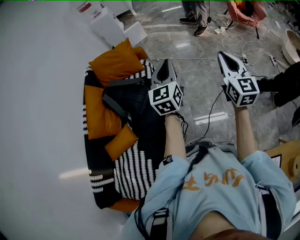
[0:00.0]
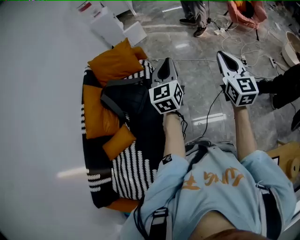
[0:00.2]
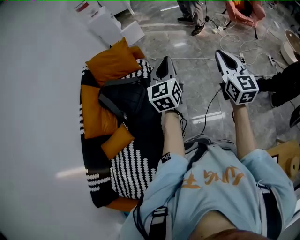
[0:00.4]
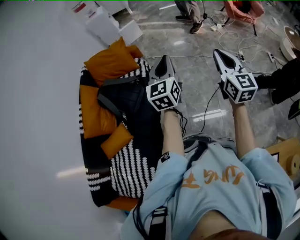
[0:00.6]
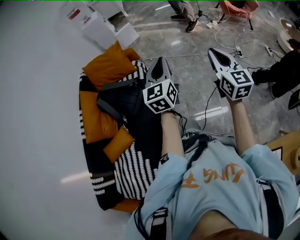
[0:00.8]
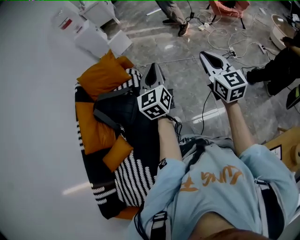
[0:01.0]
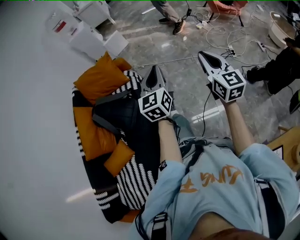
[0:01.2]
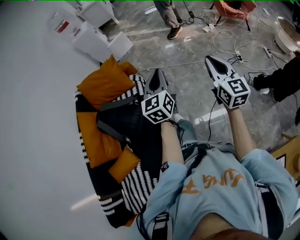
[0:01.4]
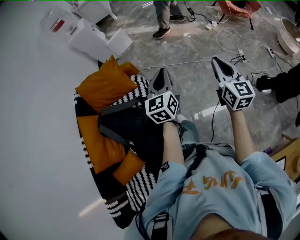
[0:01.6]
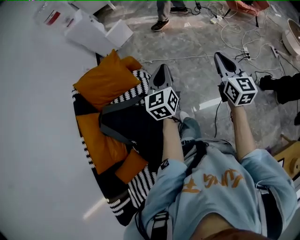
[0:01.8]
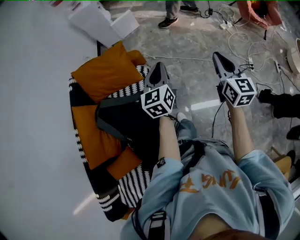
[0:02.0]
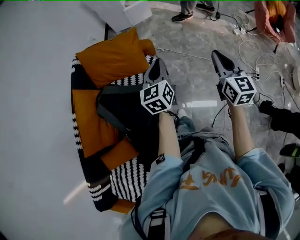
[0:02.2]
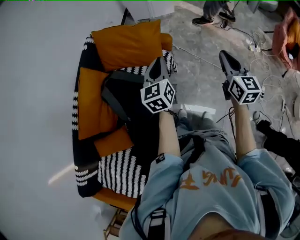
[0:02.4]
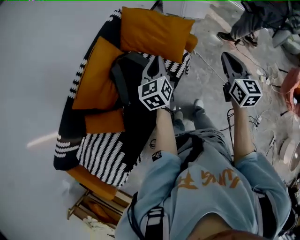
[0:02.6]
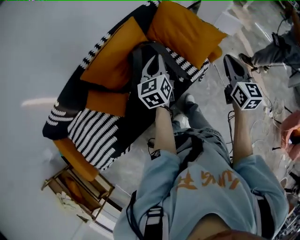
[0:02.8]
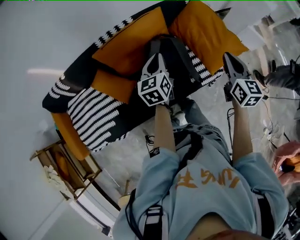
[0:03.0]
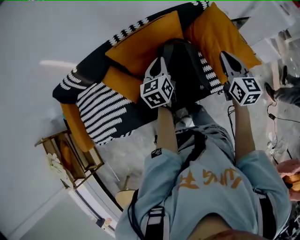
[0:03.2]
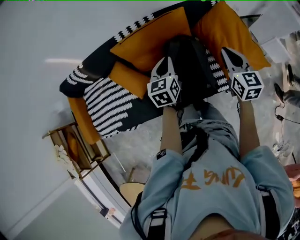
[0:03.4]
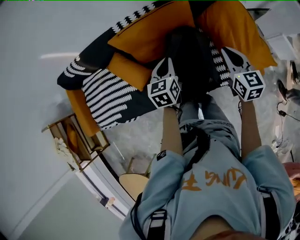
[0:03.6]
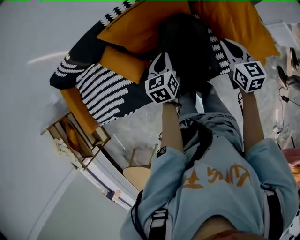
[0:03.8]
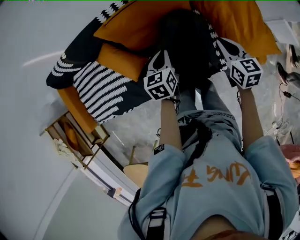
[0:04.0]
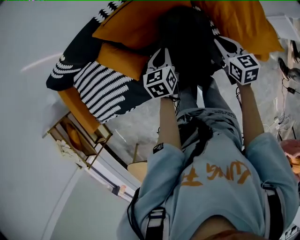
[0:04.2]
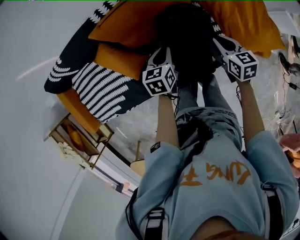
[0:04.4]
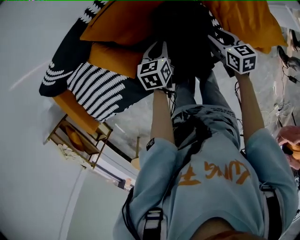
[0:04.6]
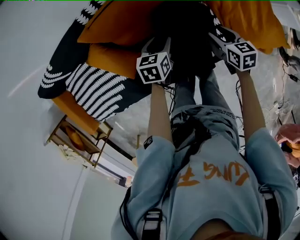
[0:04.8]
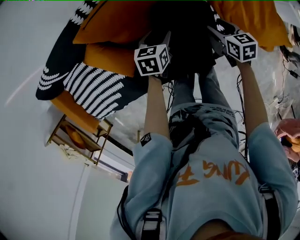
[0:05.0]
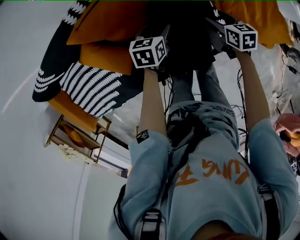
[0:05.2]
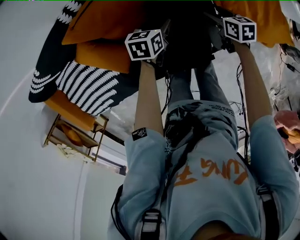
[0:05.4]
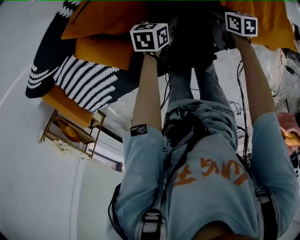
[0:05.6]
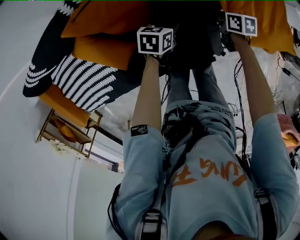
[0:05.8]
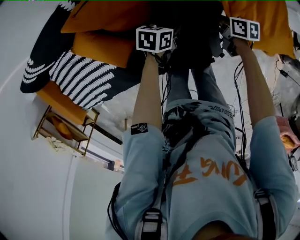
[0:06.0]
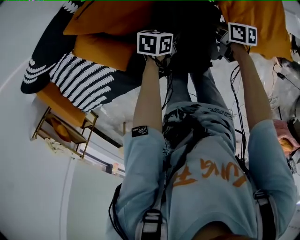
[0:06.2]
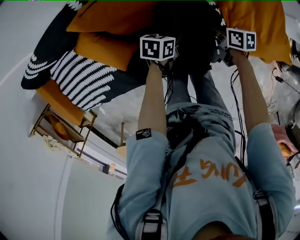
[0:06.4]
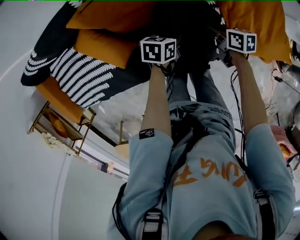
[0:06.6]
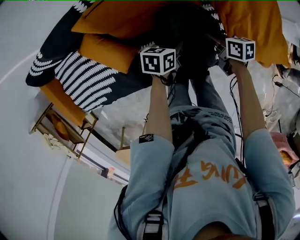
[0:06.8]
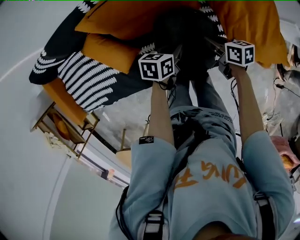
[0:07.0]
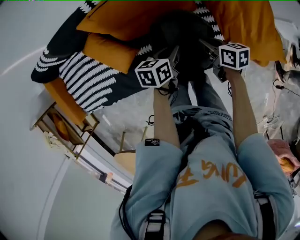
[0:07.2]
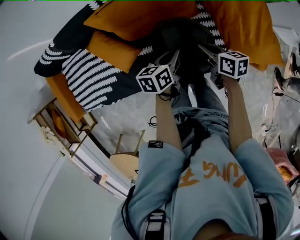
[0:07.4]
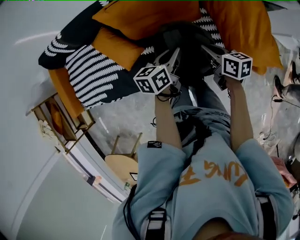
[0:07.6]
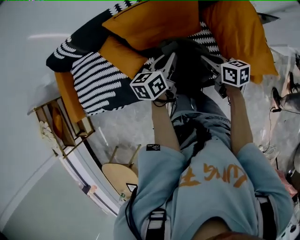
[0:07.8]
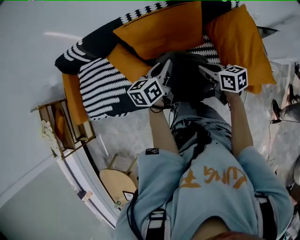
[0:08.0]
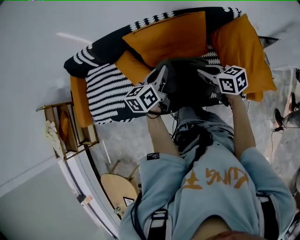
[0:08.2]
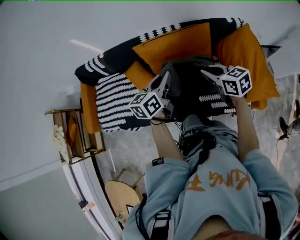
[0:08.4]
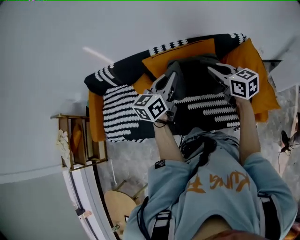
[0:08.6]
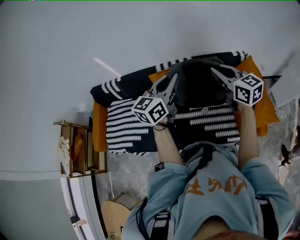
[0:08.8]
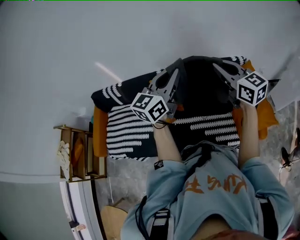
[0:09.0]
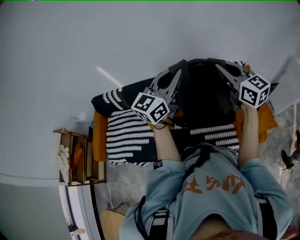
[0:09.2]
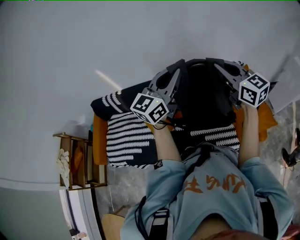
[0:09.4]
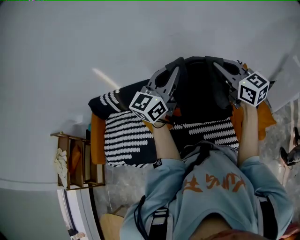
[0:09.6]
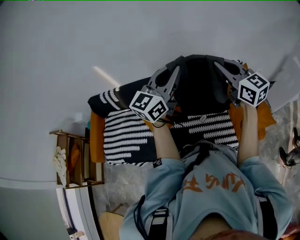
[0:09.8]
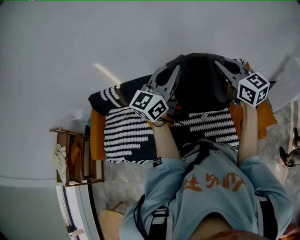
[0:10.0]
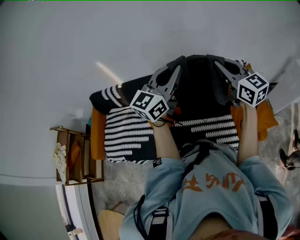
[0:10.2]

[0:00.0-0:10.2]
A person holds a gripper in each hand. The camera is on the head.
0:00.0 to 0:01.4: The two grippers go about 15 cm forward and downward.
0:01.4 to 0:03.0: The pair of grippers is taken approximately 60 cm. The right gripper rotates some 70 degrees. The left gripper rotates approximately 70 degrees.
0:03.0 to 0:04.4: The left gripper moves downward, roughly 20 cm, and swivels roughly 30 degrees. The right gripper heads downward and forward, covering approximately 30 cm, and changes its angle by approximately 30 degrees.
0:04.4 to 0:05.8: The grippers both shift downward and forward by roughly 20 cm. The left gripper rotates approximately 30 degrees, and opens its fingers; the right gripper turns by some 30 degrees, and opens.
0:05.8 to 0:07.2: Both grippers move upward, about 10 cm. The right gripper closes up; the left gripper rotates roughly 20 degrees, and closes up.
0:07.2 to 0:08.8: Both grippers travel together upward, roughly 40 cm. The right gripper angles its fingers upward, by roughly 30 degrees; the left gripper tilts its fingers some 40 degrees upward.
0:08.8 to 0:10.2: The two grippers go approximately 5 cm upward.

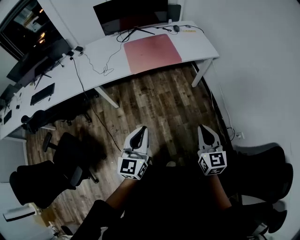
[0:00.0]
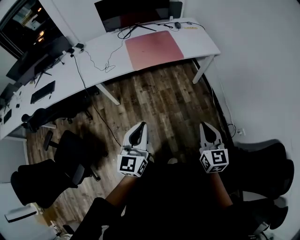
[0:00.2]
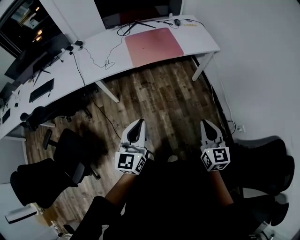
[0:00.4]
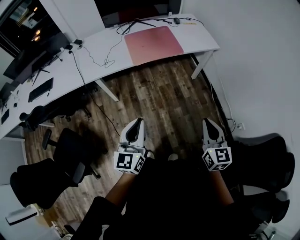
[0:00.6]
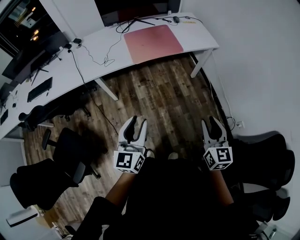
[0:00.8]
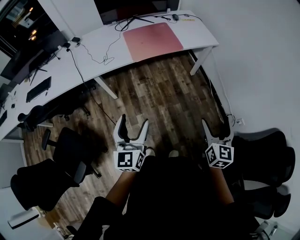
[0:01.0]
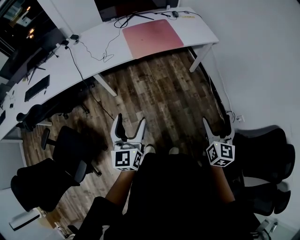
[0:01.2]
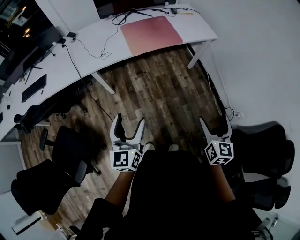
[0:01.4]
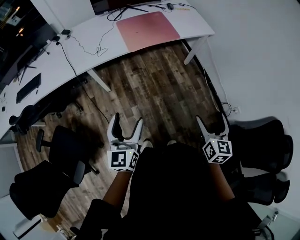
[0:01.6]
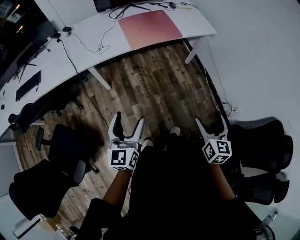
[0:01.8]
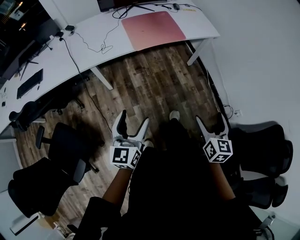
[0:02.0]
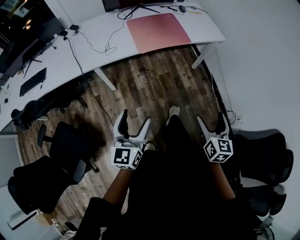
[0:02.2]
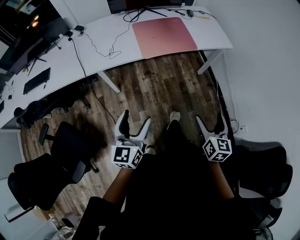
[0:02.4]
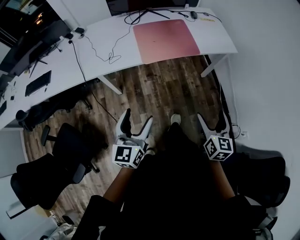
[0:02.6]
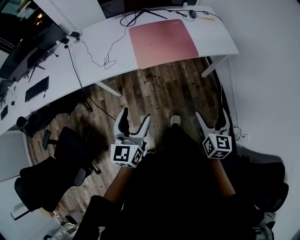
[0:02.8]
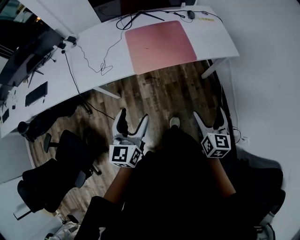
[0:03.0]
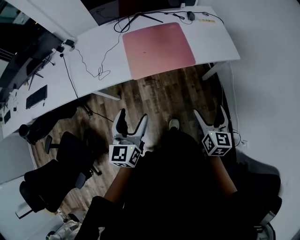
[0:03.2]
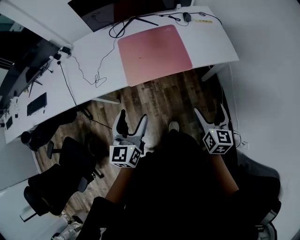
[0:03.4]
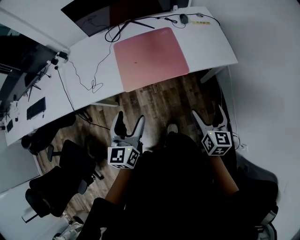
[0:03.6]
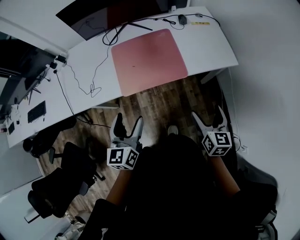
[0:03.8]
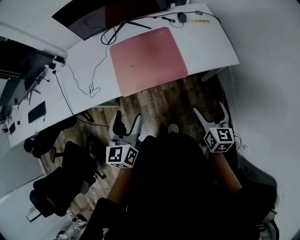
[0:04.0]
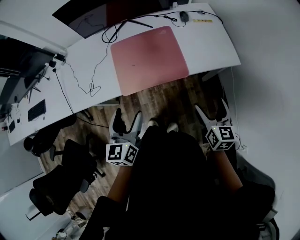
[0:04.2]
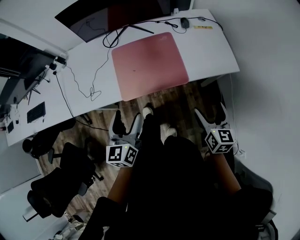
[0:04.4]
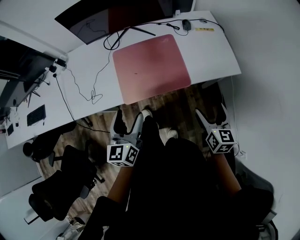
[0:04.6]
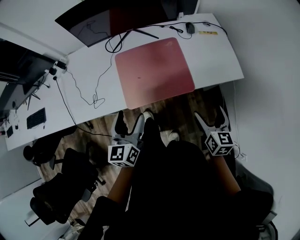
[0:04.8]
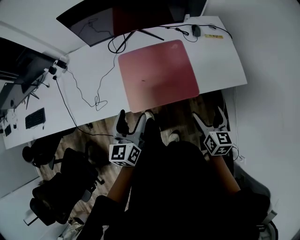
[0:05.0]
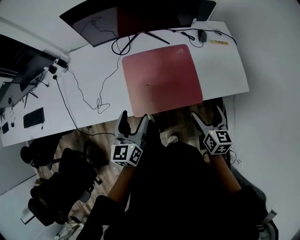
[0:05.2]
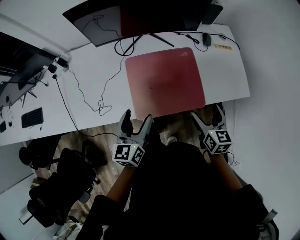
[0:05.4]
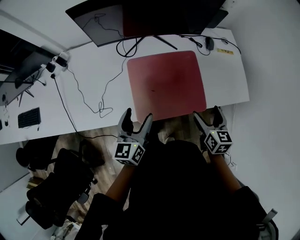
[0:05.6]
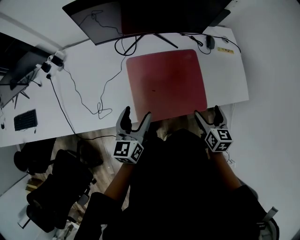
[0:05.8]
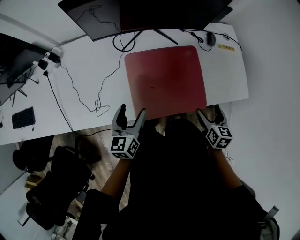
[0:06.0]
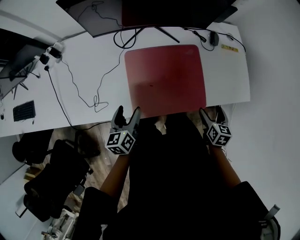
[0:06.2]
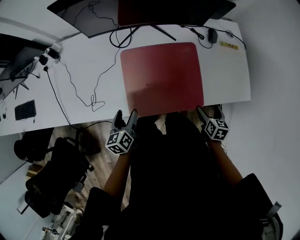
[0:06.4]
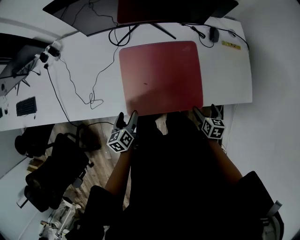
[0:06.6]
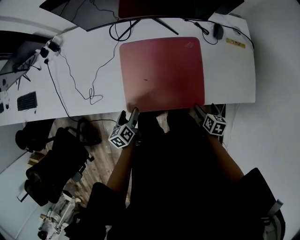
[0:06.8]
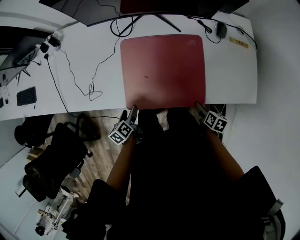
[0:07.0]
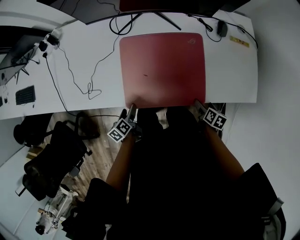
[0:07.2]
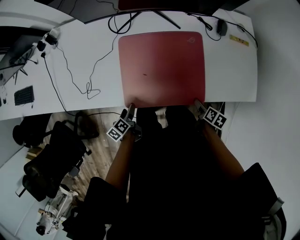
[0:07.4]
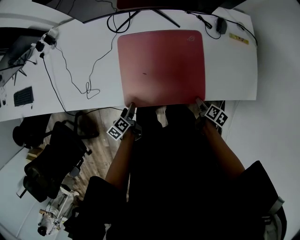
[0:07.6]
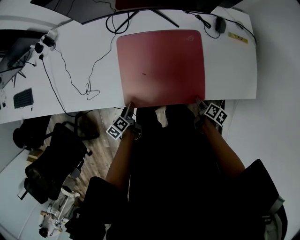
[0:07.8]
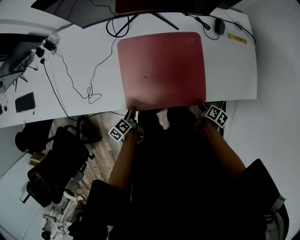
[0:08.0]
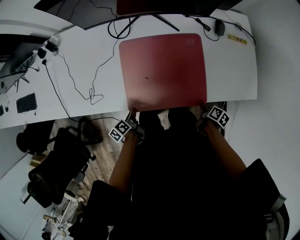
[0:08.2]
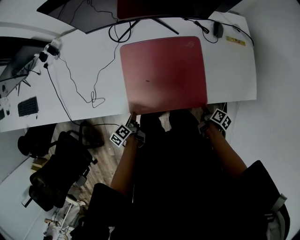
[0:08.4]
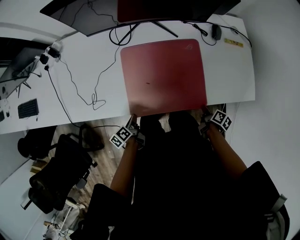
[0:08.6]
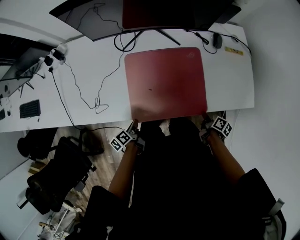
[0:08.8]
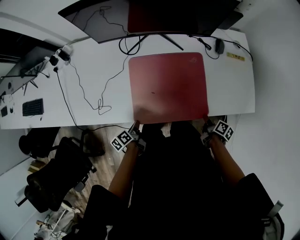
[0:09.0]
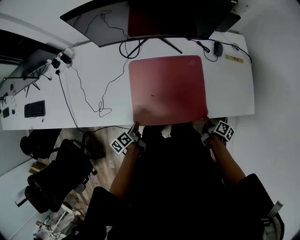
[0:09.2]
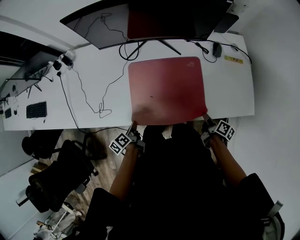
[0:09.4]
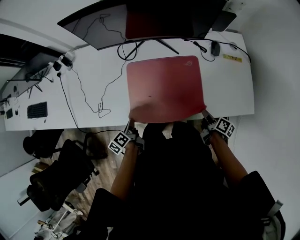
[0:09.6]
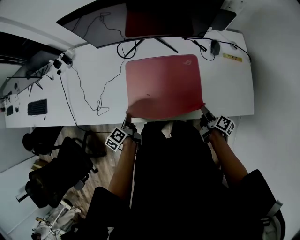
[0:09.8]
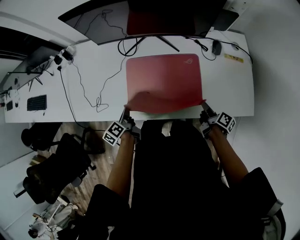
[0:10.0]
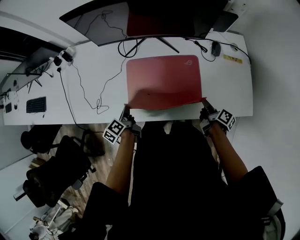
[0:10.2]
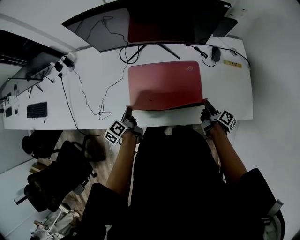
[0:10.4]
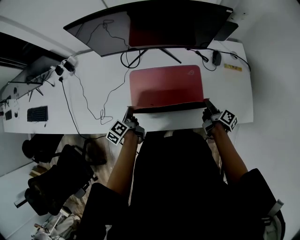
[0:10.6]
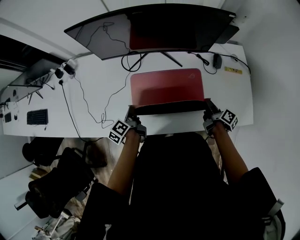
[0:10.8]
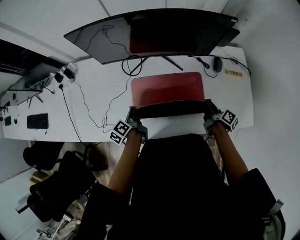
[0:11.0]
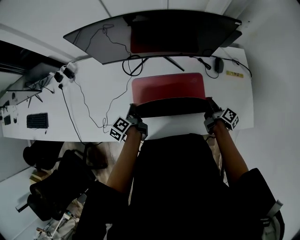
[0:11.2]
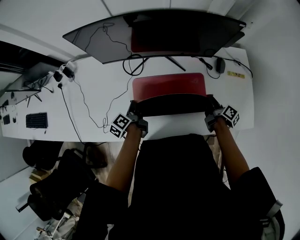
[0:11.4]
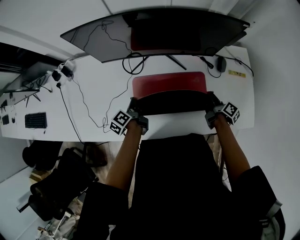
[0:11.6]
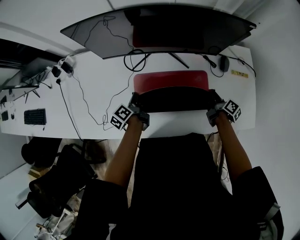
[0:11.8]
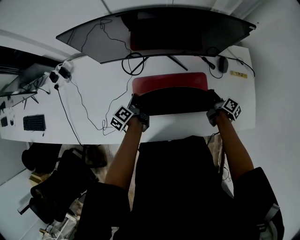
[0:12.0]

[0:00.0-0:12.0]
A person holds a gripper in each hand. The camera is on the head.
0:00.0 to 0:01.6: The left gripper shifts approximately 15 cm to the left, and opens up, while the right gripper goes about 5 cm to the left, and opens its fingers.
0:01.6 to 0:03.0: The grippers both shift forward by about 30 cm.
0:03.0 to 0:04.4: The left gripper heads forward, covering some 20 cm, while the right gripper is displaced forward and to the right by about 25 cm.
0:04.4 to 0:06.0: Both grippers move forward, to the left and downward, some 25 cm.
0:06.0 to 0:07.6: The right gripper moves downward and to the right, some 20 cm, and rotates roughly 40 degrees. The left gripper travels downward by about 25 cm, and twists some 40 degrees counterclockwise, seen from behind.
0:07.6 to 0:09.0: The left gripper closes up, while the right gripper moves roughly 5 cm, and closes.
0:09.0 to 0:10.4: The two grippers go some 15 cm forward and upward.
0:10.4 to 0:12.0: The two grippers go roughly 15 cm forward.

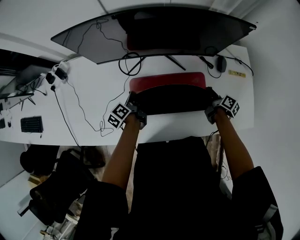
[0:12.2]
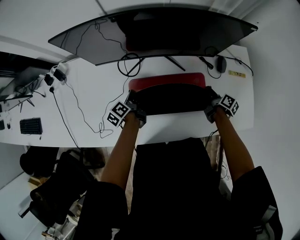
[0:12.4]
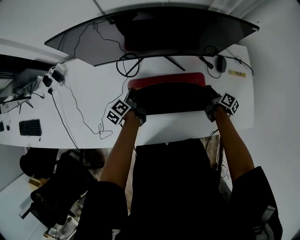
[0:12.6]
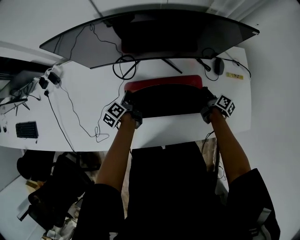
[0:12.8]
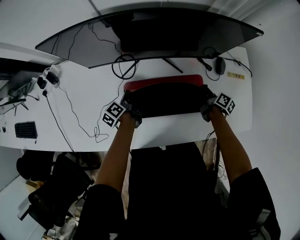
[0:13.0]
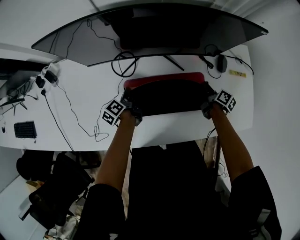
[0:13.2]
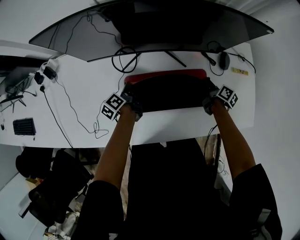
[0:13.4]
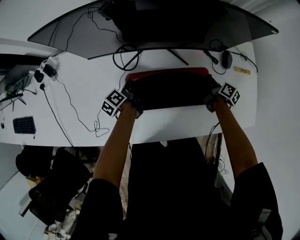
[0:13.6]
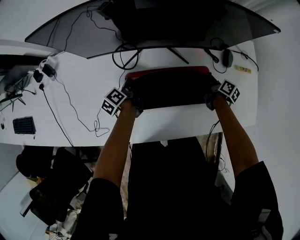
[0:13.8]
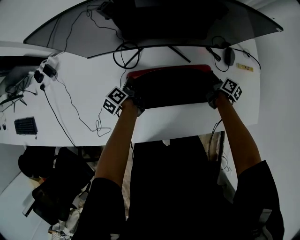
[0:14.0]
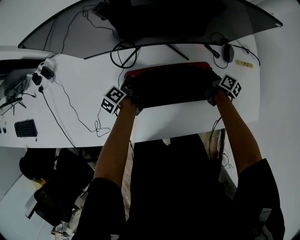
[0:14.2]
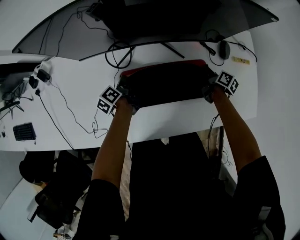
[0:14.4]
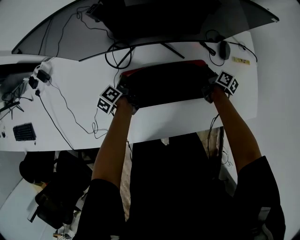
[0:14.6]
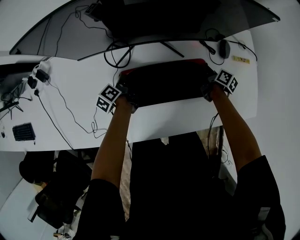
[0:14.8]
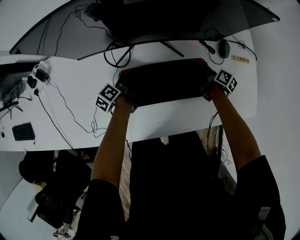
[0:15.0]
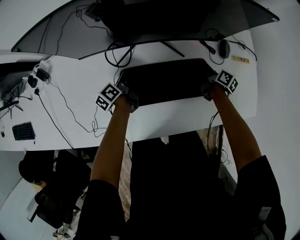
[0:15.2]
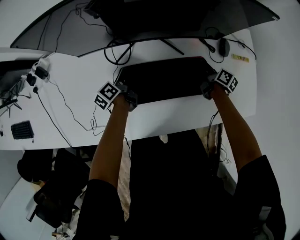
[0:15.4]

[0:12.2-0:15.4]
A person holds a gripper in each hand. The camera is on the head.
0:12.2 to 0:13.8: Both grippers travel together forward and downward, about 10 cm.
0:13.8 to 0:15.4: There are only small adjustments of the grippers.
